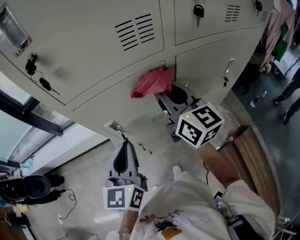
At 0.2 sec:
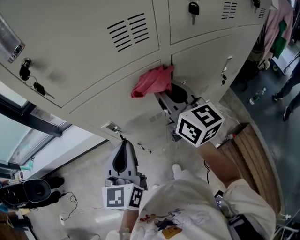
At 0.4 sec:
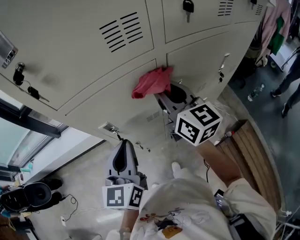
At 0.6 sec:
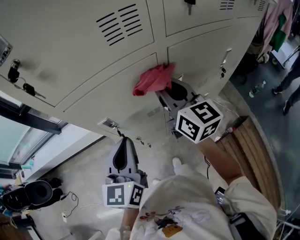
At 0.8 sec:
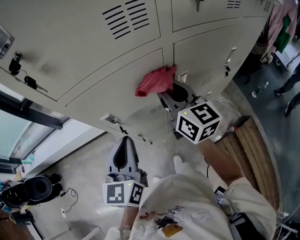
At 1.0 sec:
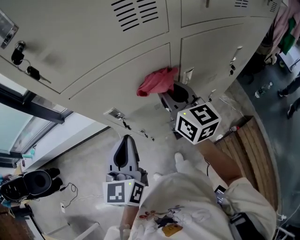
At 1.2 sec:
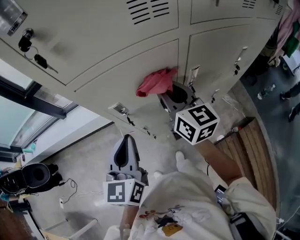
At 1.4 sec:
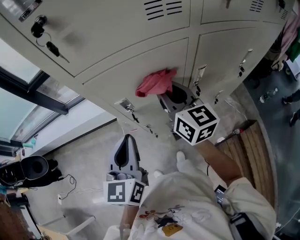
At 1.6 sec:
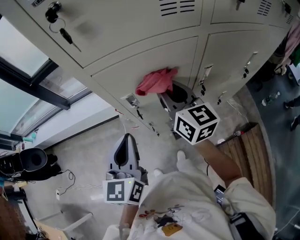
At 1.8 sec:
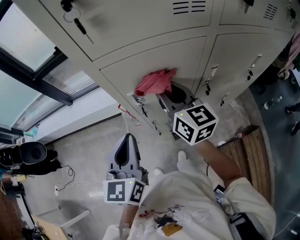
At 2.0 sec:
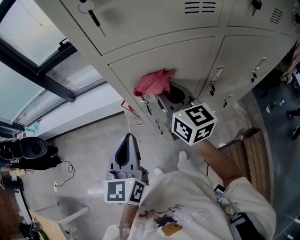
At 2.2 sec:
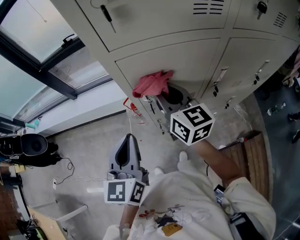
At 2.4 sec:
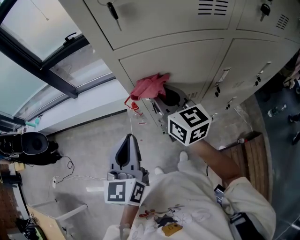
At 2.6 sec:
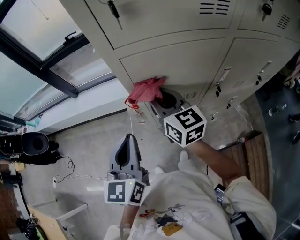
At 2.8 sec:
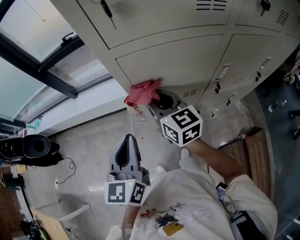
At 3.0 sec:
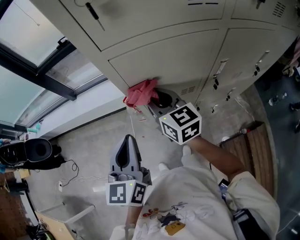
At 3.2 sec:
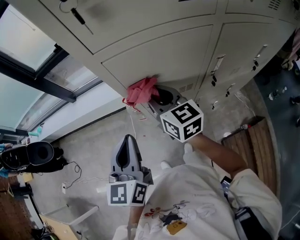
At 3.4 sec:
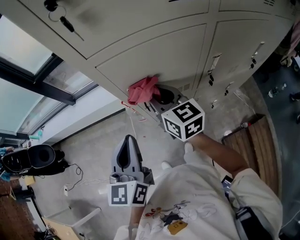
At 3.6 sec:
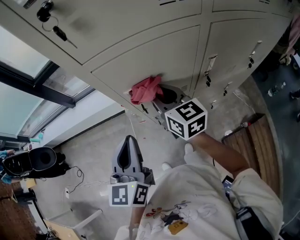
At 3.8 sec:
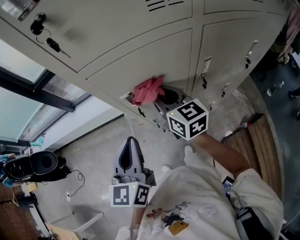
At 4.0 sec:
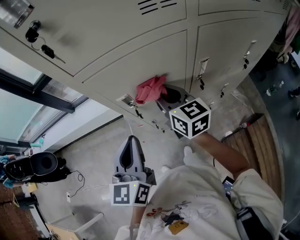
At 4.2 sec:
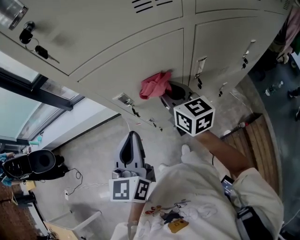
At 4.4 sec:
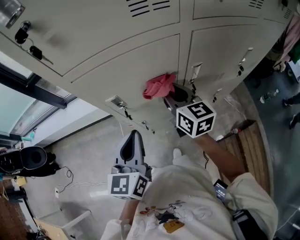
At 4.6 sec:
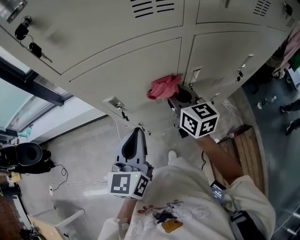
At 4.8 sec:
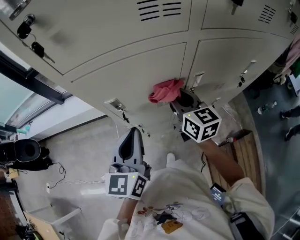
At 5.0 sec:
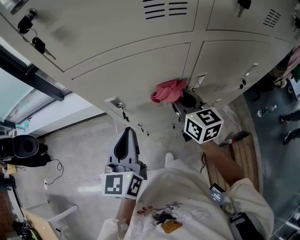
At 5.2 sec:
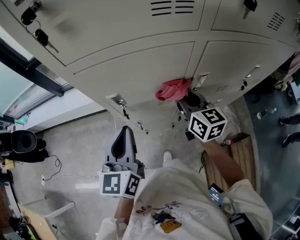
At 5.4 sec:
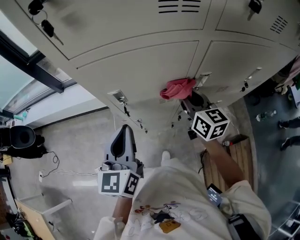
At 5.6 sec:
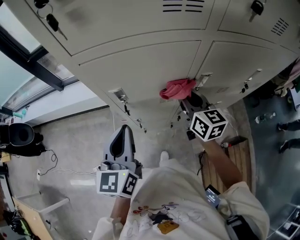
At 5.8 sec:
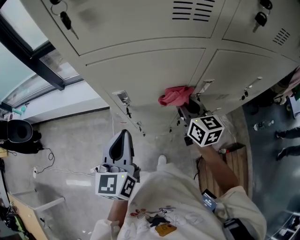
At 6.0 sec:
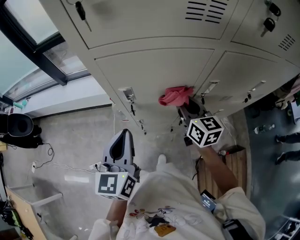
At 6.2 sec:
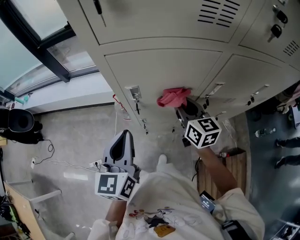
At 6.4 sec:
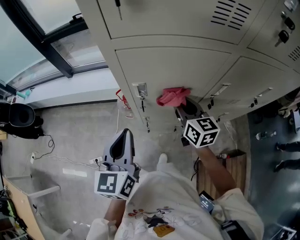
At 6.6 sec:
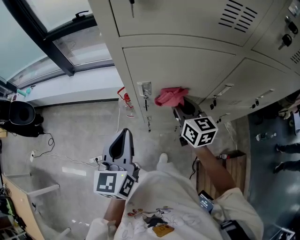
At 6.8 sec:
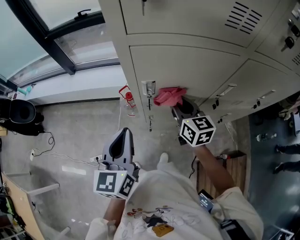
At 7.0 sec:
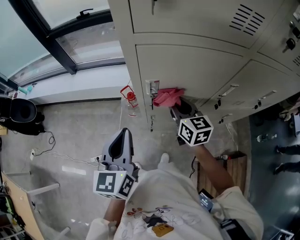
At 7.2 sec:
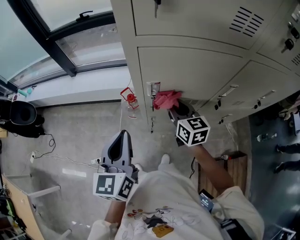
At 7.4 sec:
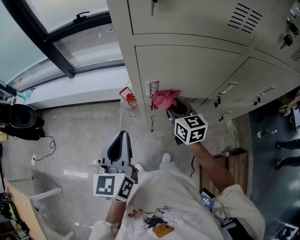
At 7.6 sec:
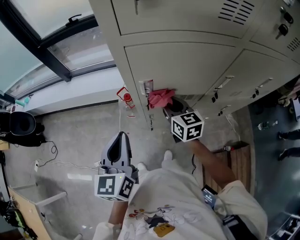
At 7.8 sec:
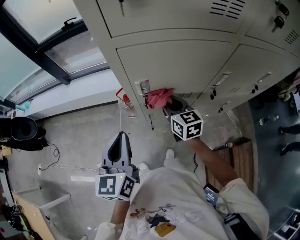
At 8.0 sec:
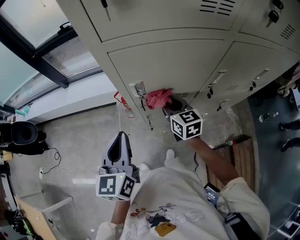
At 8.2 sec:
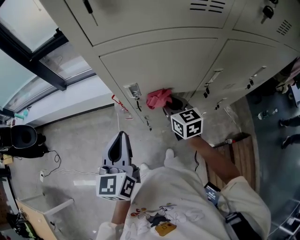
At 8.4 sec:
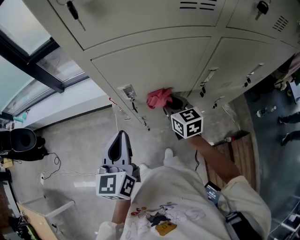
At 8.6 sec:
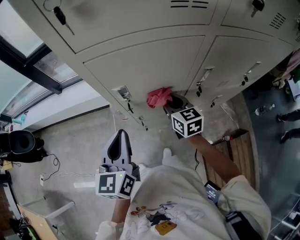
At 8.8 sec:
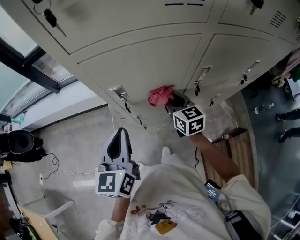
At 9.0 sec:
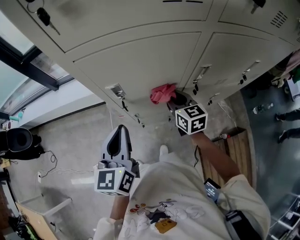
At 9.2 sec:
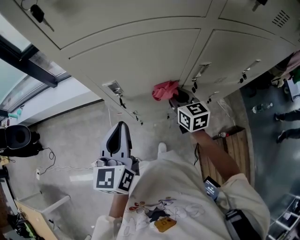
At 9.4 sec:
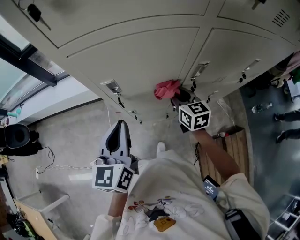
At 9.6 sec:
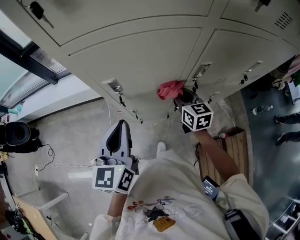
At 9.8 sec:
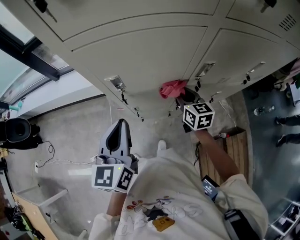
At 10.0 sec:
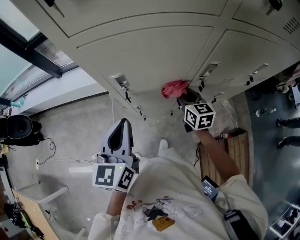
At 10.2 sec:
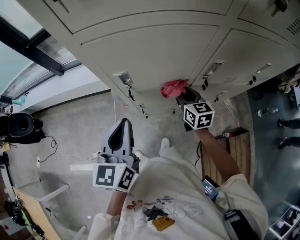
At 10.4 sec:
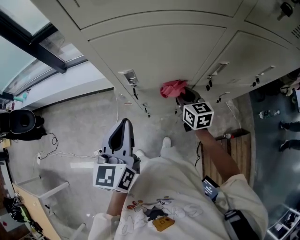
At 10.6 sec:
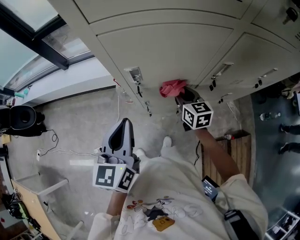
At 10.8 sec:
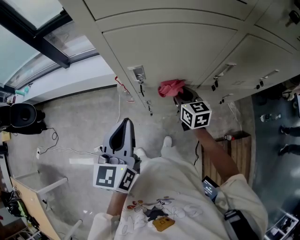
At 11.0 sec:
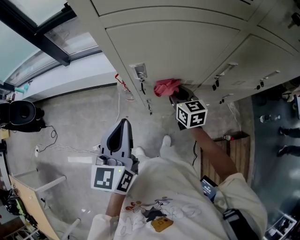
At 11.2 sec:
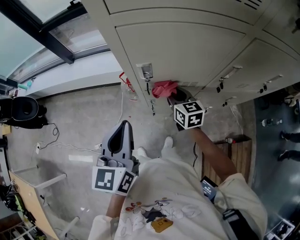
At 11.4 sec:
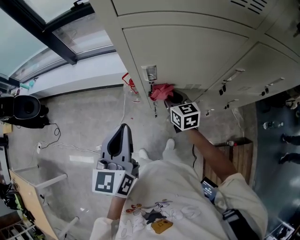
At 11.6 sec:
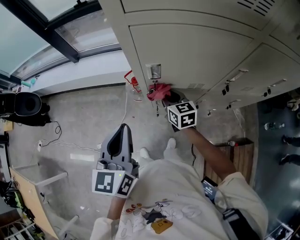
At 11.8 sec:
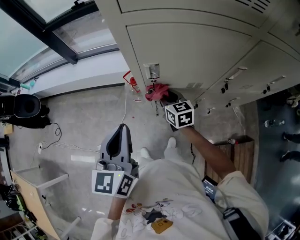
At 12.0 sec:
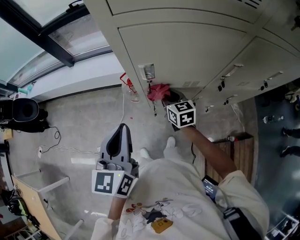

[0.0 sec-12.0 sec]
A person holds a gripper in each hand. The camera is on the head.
0.0 sec to 1.6 sec: The left gripper shifts about 5 cm to the left. The right gripper shifts roughly 10 cm to the left and downward.
1.6 sec to 3.0 sec: The right gripper travels to the left and downward by about 10 cm. The left gripper moves to the left, some 5 cm.
3.0 sec to 4.4 sec: Both grippers travel together to the right, some 15 cm.
4.4 sec to 6.0 sec: The grippers move only a little.
6.0 sec to 7.6 sec: The left gripper goes approximately 10 cm to the left. The right gripper is displaced to the left and downward by roughly 15 cm.
7.6 sec to 9.0 sec: The grippers both shift to the right by about 10 cm.
9.0 sec to 10.4 sec: The grippers stay close to where they were, moving slightly.
10.4 sec to 12.0 sec: The left gripper goes roughly 5 cm to the left, while the right gripper moves to the left, about 10 cm.

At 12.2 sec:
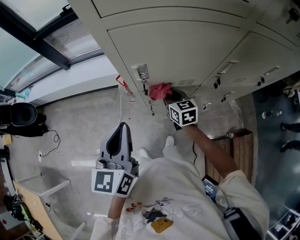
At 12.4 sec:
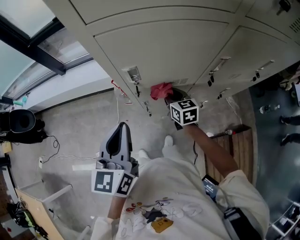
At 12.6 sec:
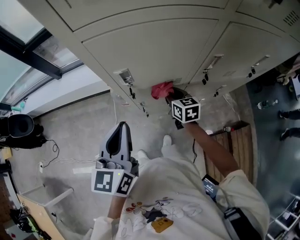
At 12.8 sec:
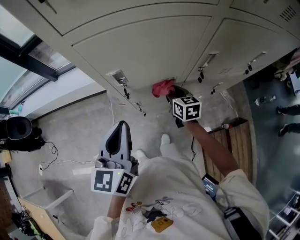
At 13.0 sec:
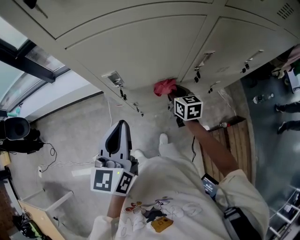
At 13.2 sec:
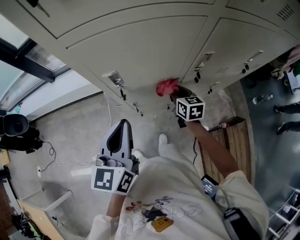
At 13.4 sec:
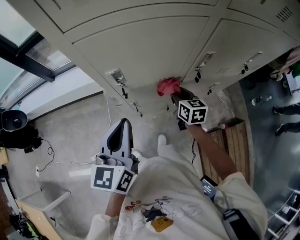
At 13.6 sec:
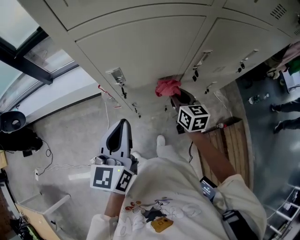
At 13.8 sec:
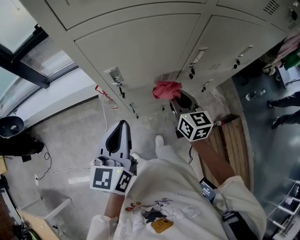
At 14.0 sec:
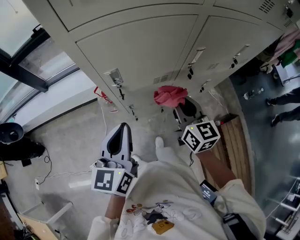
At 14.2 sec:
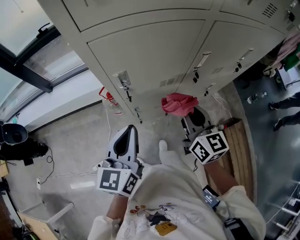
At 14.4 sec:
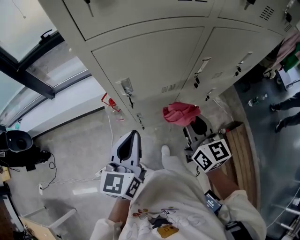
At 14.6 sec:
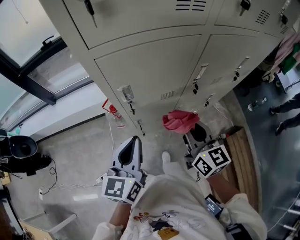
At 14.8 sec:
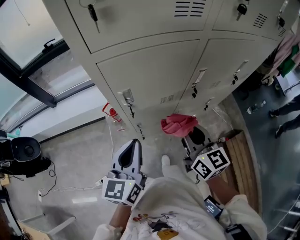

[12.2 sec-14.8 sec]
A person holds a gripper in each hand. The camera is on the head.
12.2 sec to 13.4 sec: The left gripper is displaced to the right by roughly 5 cm; the right gripper travels to the right by some 15 cm.
13.4 sec to 14.8 sec: The right gripper travels upward and backward by roughly 25 cm, and swivels about 20 degrees.

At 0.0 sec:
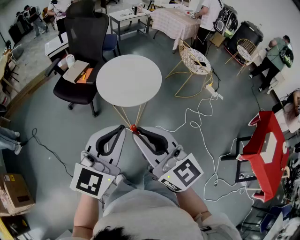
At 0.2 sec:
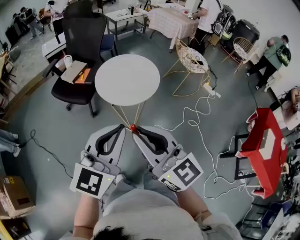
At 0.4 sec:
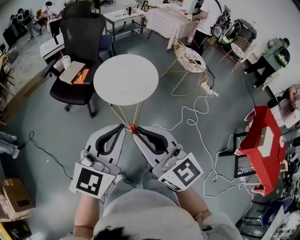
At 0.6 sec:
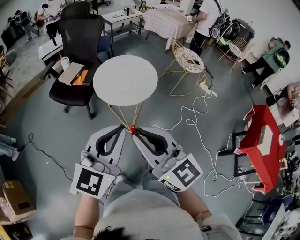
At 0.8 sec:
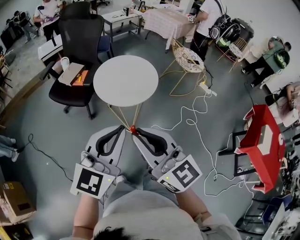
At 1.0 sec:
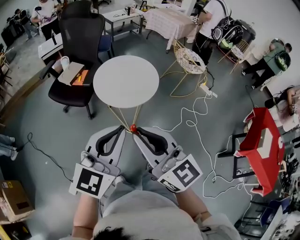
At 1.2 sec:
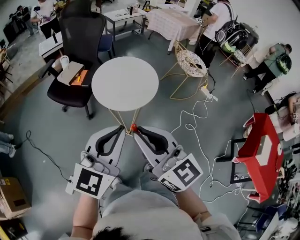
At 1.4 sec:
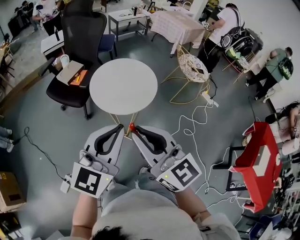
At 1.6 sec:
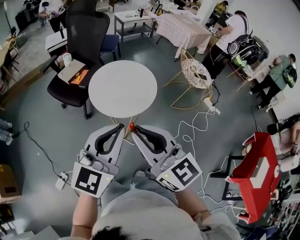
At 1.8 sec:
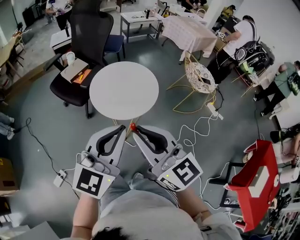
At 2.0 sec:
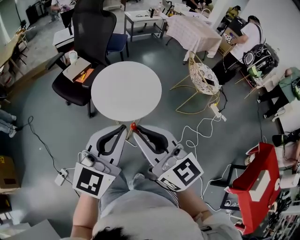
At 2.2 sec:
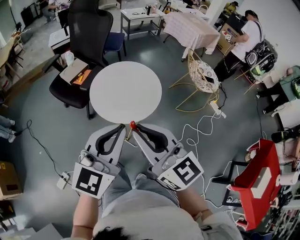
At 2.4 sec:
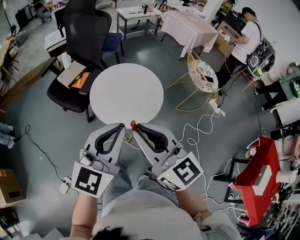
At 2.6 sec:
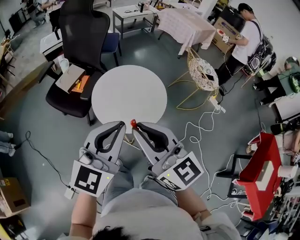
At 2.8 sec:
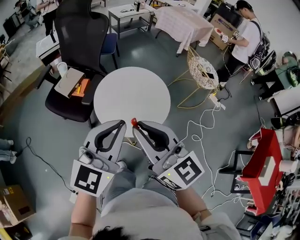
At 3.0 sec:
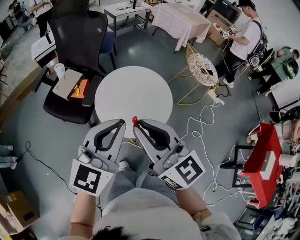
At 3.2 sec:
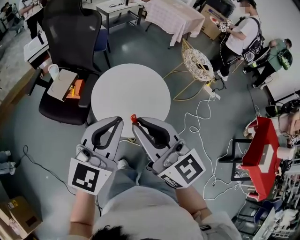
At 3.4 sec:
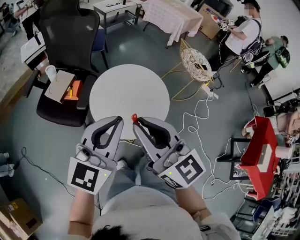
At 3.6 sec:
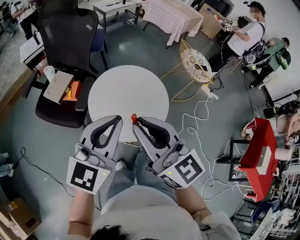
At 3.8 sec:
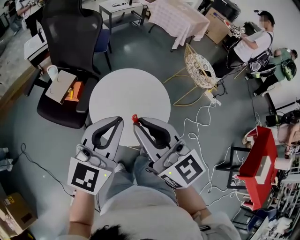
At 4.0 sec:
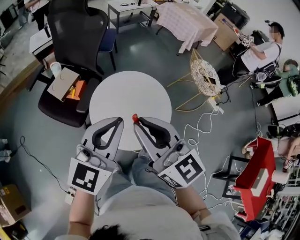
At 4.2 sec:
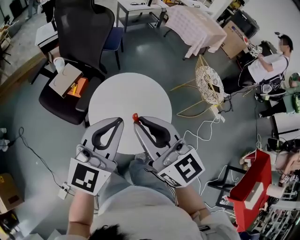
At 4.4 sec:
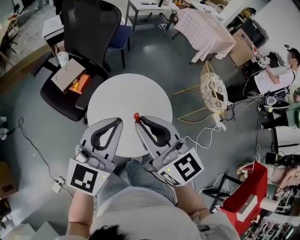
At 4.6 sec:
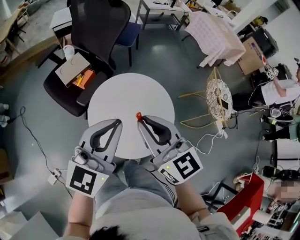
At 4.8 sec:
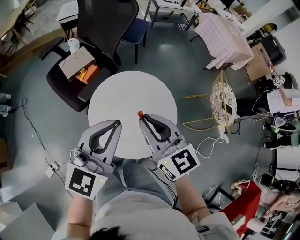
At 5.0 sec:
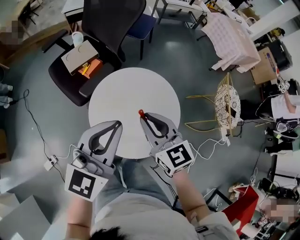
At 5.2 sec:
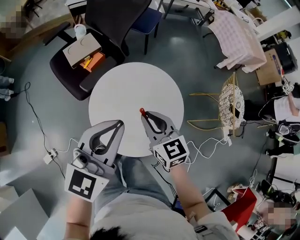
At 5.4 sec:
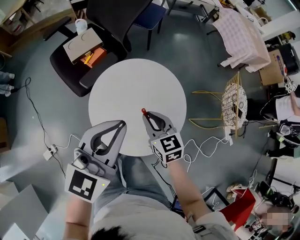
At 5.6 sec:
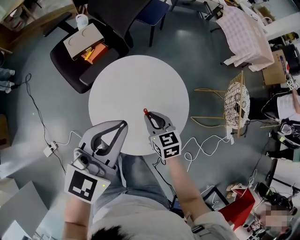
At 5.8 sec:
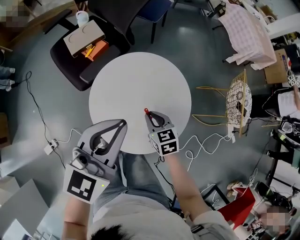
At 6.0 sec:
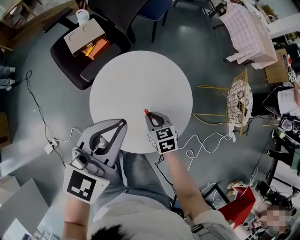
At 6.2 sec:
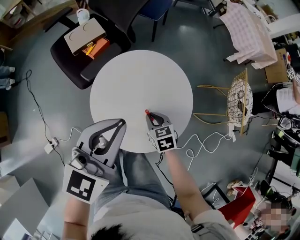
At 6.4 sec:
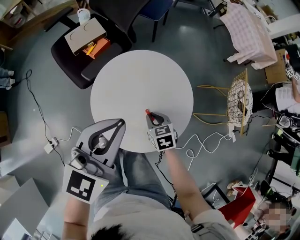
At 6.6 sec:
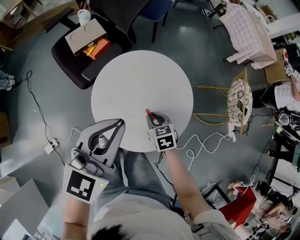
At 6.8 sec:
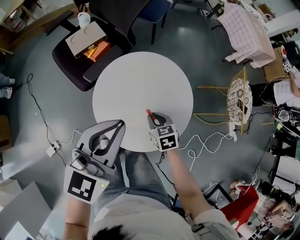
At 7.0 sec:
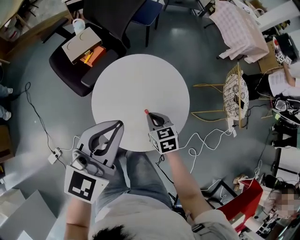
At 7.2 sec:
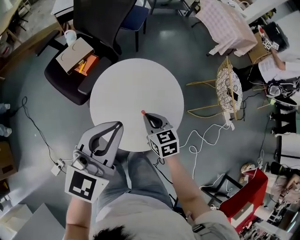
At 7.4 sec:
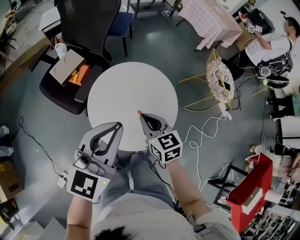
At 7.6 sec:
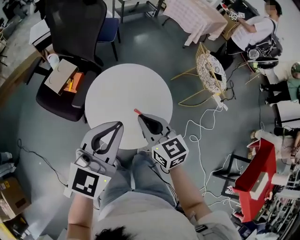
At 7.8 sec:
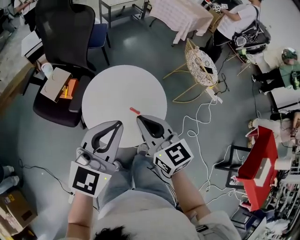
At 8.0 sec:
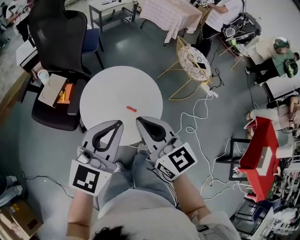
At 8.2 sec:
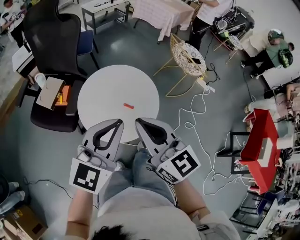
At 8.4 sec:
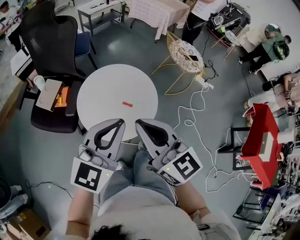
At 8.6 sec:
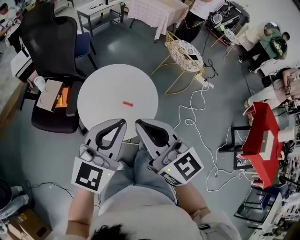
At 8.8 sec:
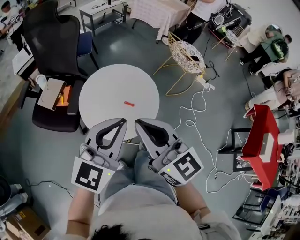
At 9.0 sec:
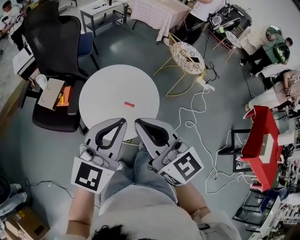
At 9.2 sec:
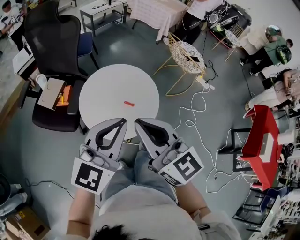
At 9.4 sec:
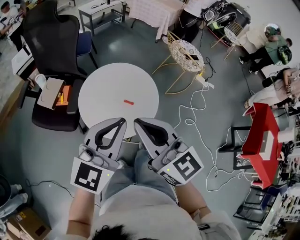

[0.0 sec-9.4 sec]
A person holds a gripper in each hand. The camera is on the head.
0.0 sec to 1.6 sec: Both grippers move forward and to the right, some 10 cm.
1.6 sec to 3.2 sec: Both grippers travel together forward and to the left, approximately 25 cm.
3.2 sec to 4.8 sec: The left gripper shifts some 15 cm forward and to the right, and rotates about 20 degrees, while the right gripper is displaced forward, downward and to the right by roughly 20 cm, and turns by approximately 20 degrees.
4.8 sec to 6.2 sec: The right gripper heads downward, covering about 30 cm, and tips its fingers downward by roughly 40 degrees. The left gripper is displaced downward by approximately 5 cm.
6.2 sec to 7.8 sec: The left gripper heads backward and upward, covering roughly 10 cm, and rotates some 30 degrees, while the right gripper travels upward by about 30 cm, and tilts its fingers about 40 degrees upward.
7.8 sec to 9.4 sec: The right gripper moves backward and upward, some 15 cm; the left gripper is displaced backward by roughly 5 cm.
